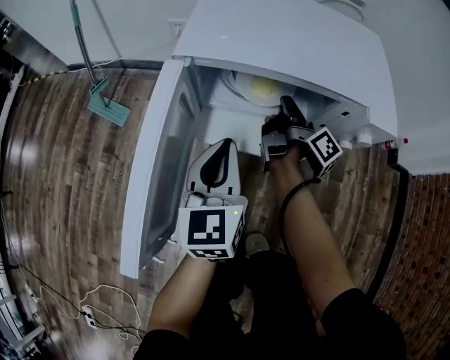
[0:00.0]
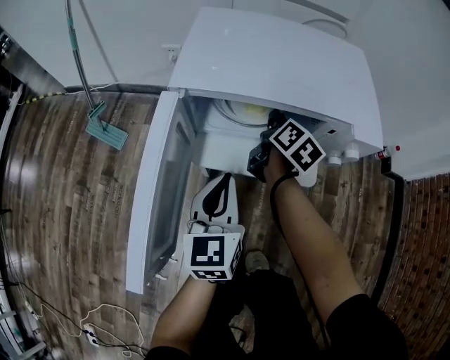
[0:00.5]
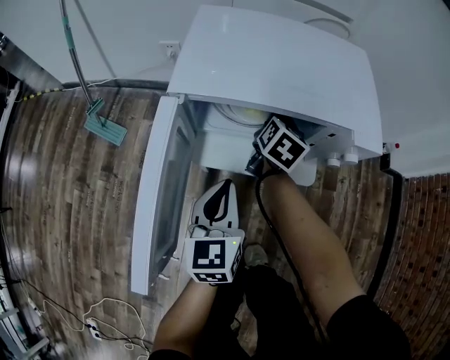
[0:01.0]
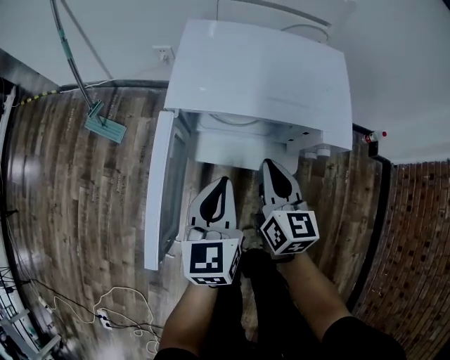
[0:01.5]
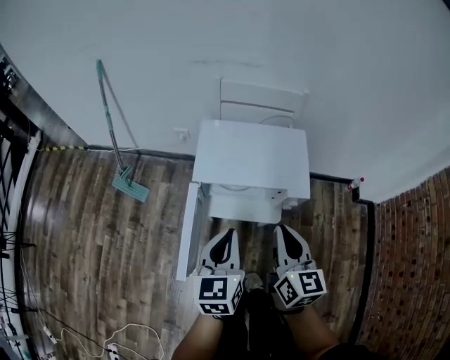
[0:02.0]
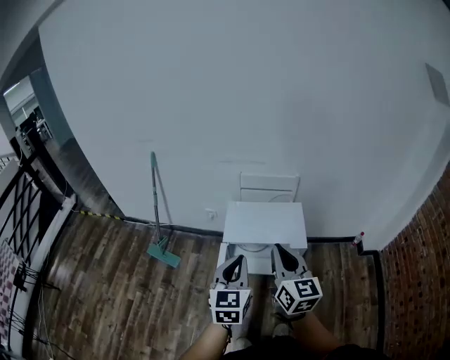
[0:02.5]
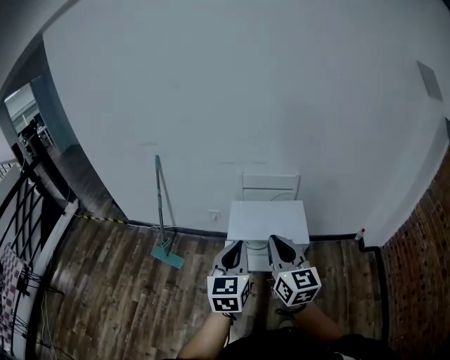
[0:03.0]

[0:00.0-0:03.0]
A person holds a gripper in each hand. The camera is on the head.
0:00.0 to 0:01.5: The left gripper moves upward, approximately 10 cm.
0:01.5 to 0:03.0: The left gripper travels upward by approximately 40 cm.

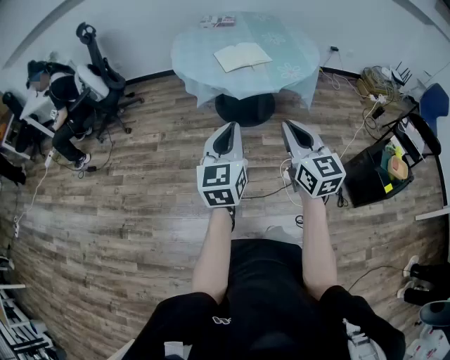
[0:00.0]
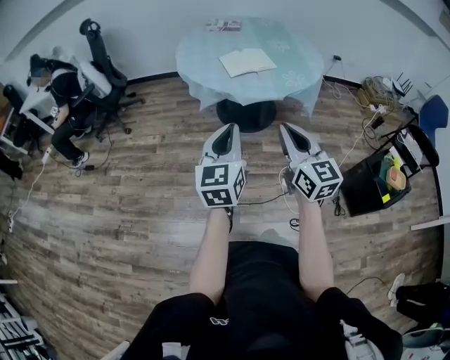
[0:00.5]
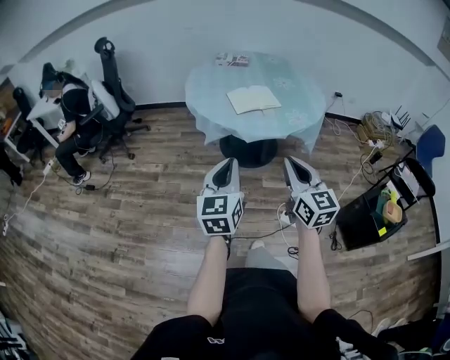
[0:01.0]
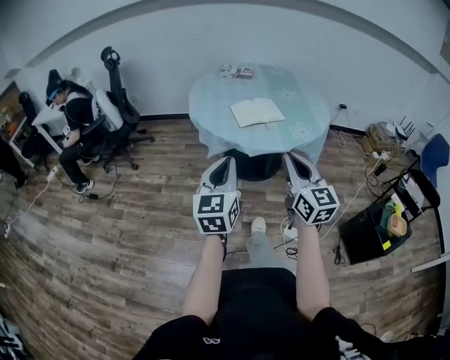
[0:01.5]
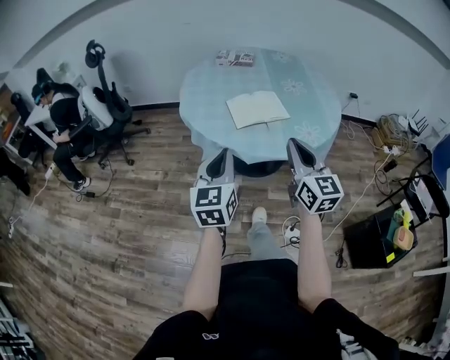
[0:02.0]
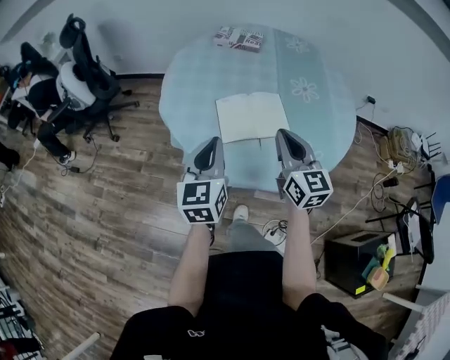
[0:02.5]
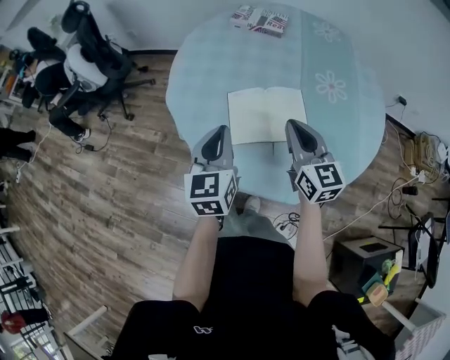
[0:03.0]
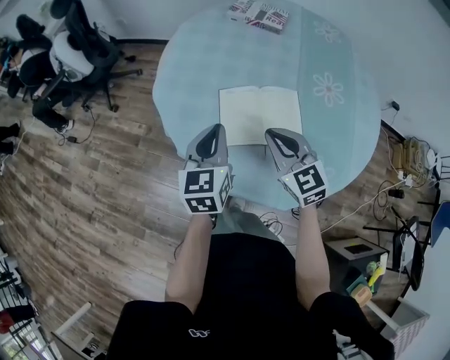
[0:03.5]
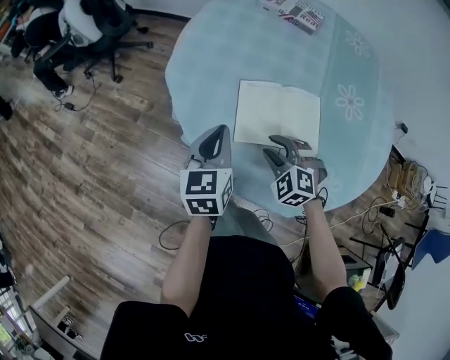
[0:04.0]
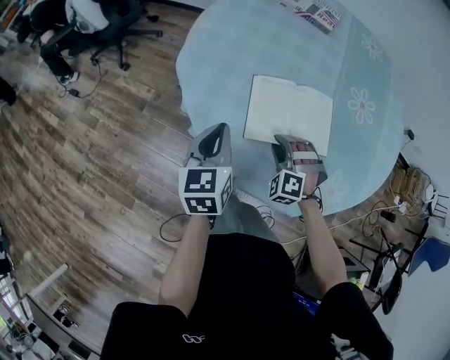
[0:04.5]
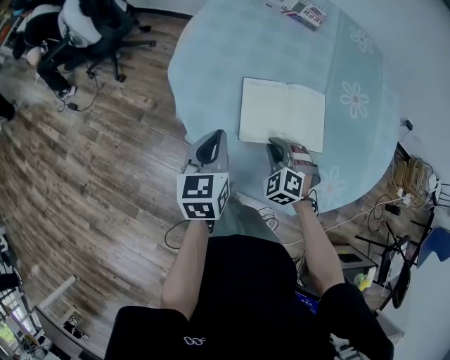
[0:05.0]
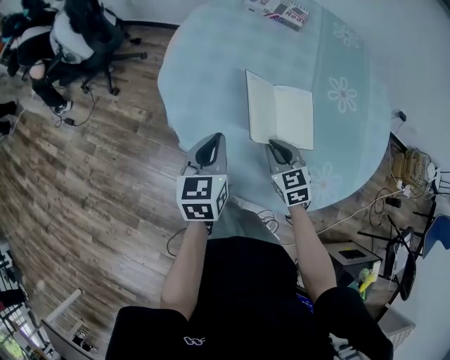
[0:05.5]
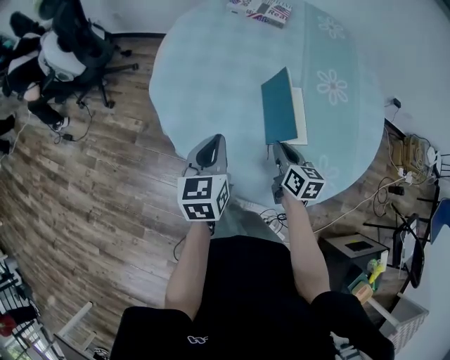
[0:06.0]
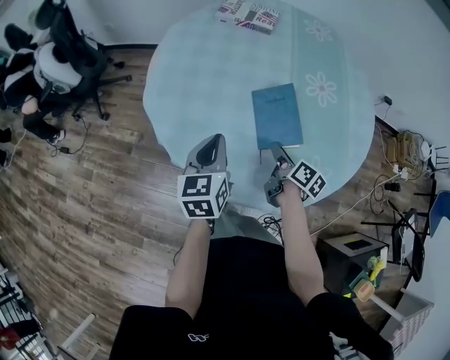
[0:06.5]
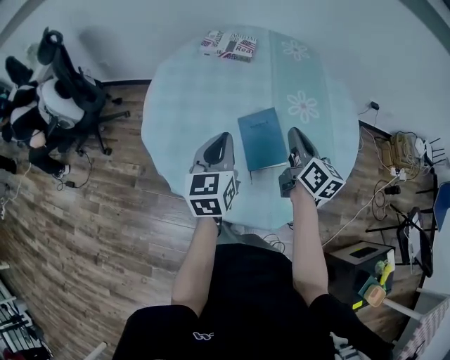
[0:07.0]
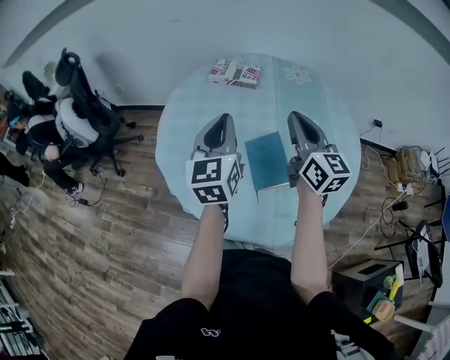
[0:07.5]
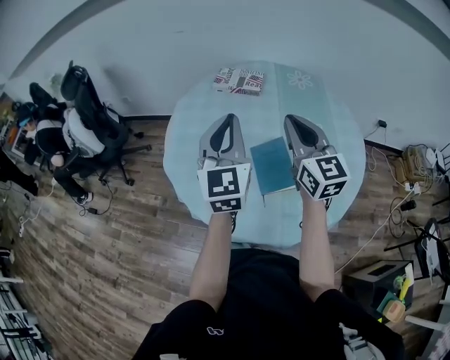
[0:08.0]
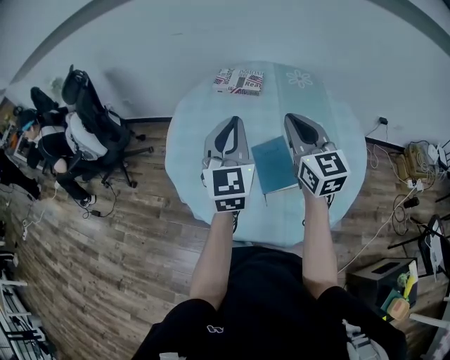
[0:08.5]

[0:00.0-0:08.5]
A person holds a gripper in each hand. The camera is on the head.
0:00.0 to 0:02.0: Both grippers move forward, about 25 cm.
0:02.0 to 0:04.0: The two grippers go about 40 cm forward and downward. The left gripper rotates roughly 30 degrees. Meanwhile the right gripper tips its fingers downward by some 50 degrees, and opens its fingers.
0:04.0 to 0:06.5: The right gripper is displaced to the right by about 10 cm, rolls clockwise, seen from behind, by about 120 degrees, and closes, then opens again; the left gripper shifts roughly 5 cm to the right.
0:06.5 to 0:08.5: The two grippers go approximately 30 cm upward. The right gripper rolls counterclockwise, seen from behind, by about 60 degrees, and closes, while the left gripper swivels roughly 40 degrees.

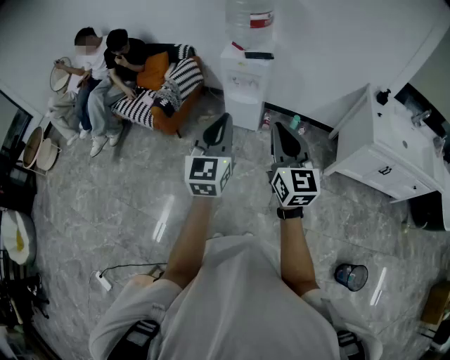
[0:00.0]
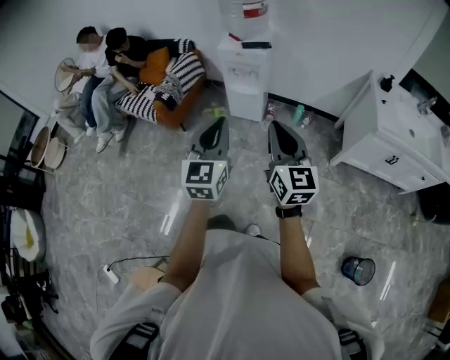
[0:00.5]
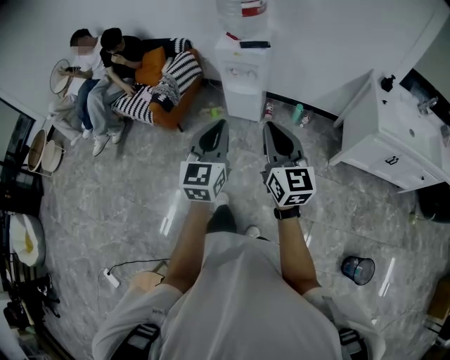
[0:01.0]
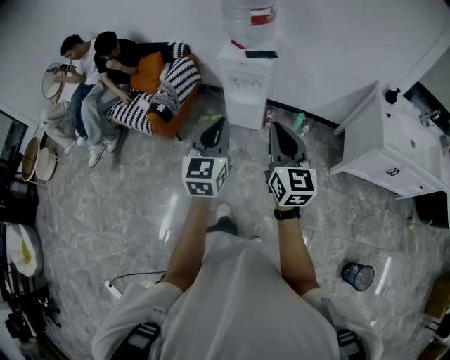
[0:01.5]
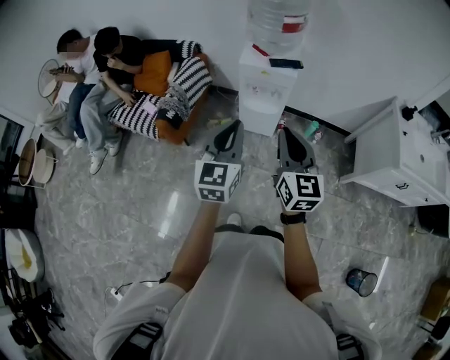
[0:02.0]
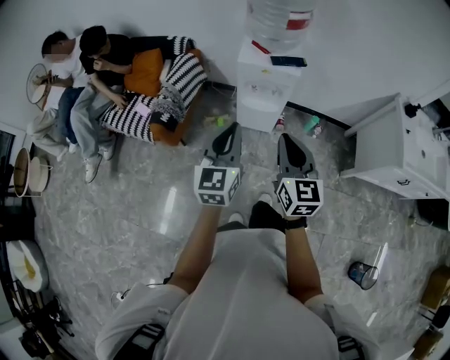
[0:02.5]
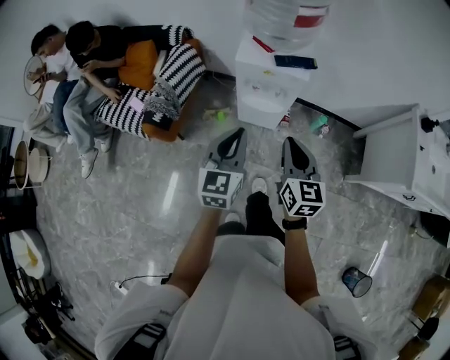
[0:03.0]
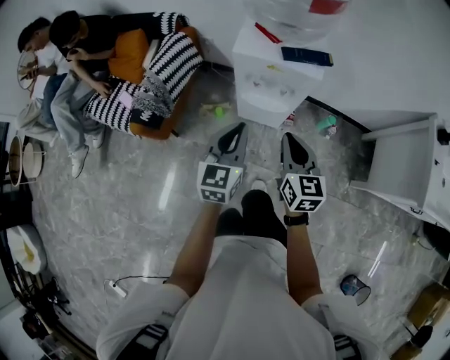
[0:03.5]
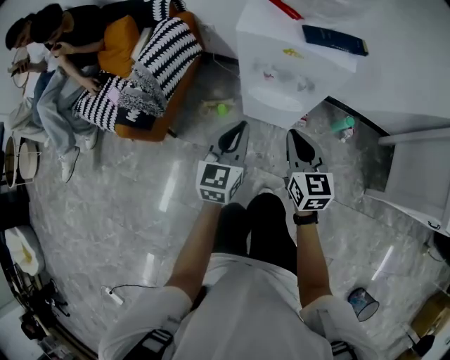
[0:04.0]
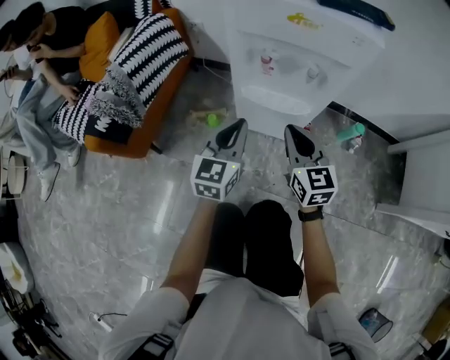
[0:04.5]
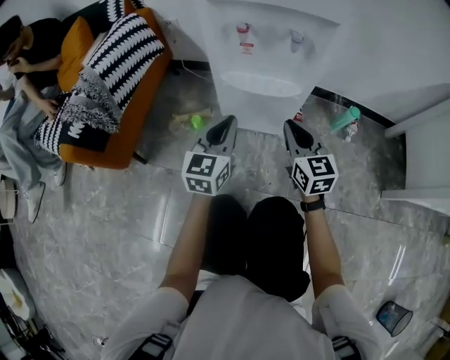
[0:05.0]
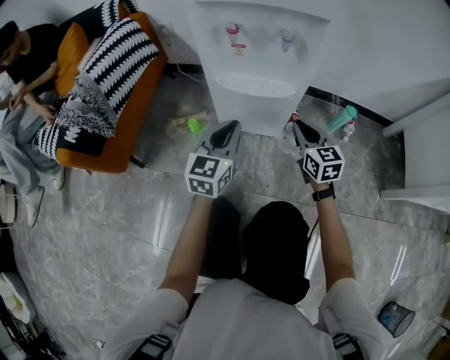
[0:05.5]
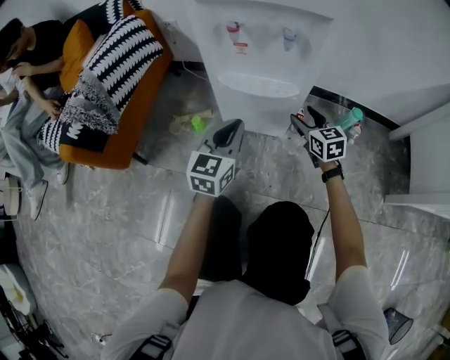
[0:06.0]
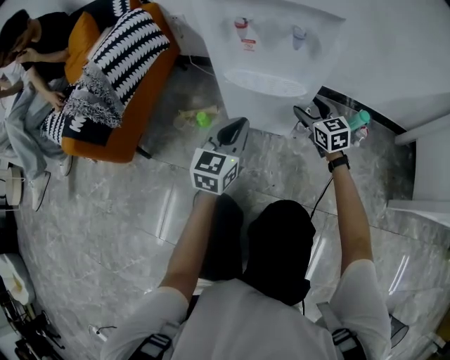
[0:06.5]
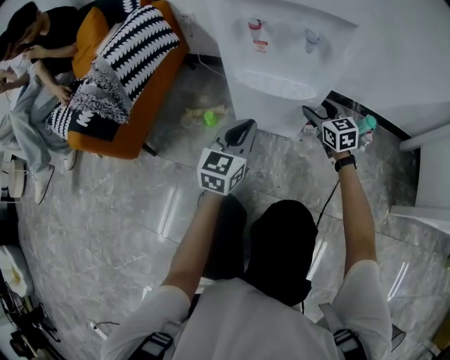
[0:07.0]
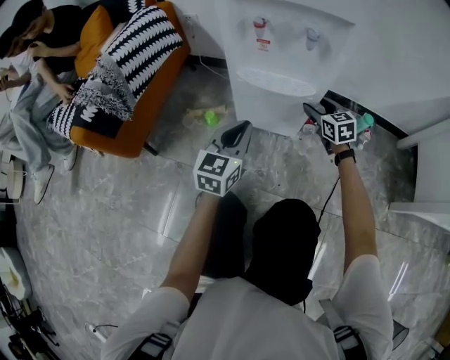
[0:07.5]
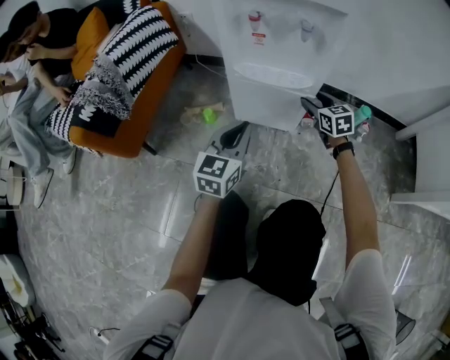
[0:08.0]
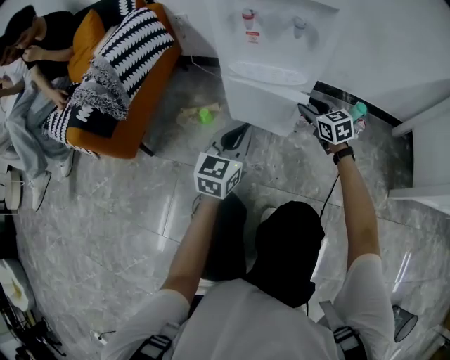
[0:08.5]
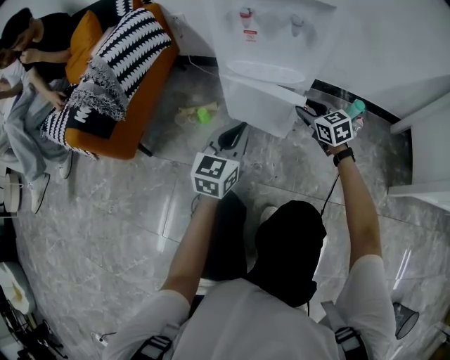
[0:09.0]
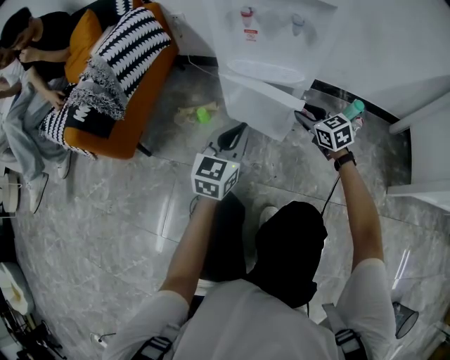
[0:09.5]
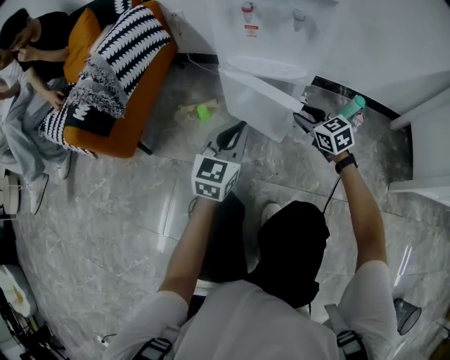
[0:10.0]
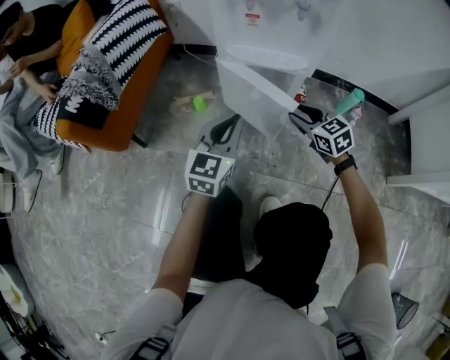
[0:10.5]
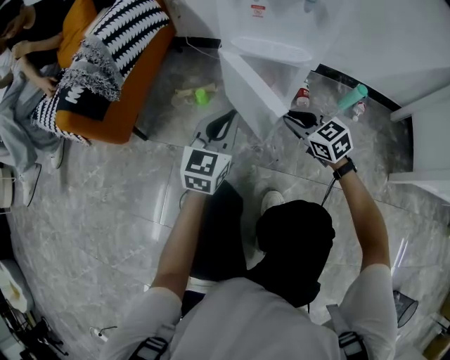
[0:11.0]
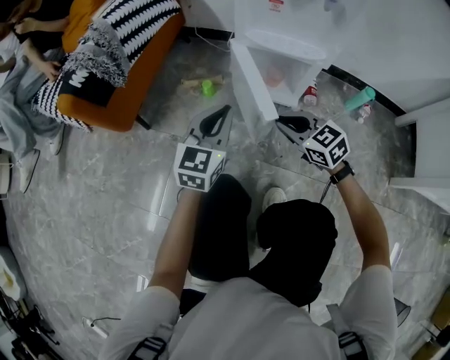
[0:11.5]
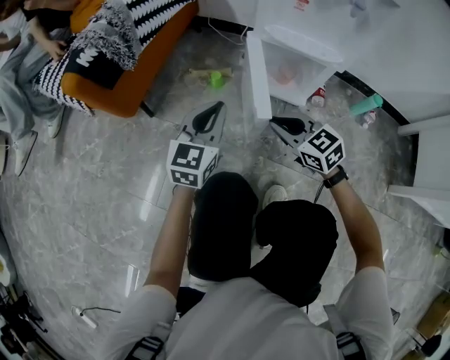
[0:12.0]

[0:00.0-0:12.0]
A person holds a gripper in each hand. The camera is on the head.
0:00.0 to 0:02.0: Both grippers travel together forward and to the left, about 25 cm.
0:02.0 to 0:04.0: The two grippers go about 50 cm downward and forward.
0:04.0 to 0:06.0: The right gripper travels downward and forward by roughly 35 cm, and opens. The left gripper travels downward by approximately 25 cm.
0:06.0 to 0:08.0: The grippers stay close to where they were, moving slightly.
0:08.0 to 0:10.0: The right gripper moves backward, about 10 cm.
0:10.0 to 0:12.0: The right gripper shifts approximately 20 cm to the left and backward, rotates approximately 20 degrees, and closes, while the left gripper goes approximately 15 cm to the left.

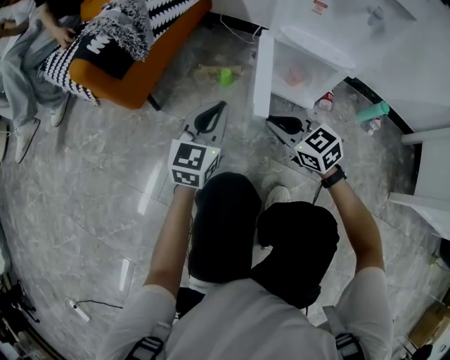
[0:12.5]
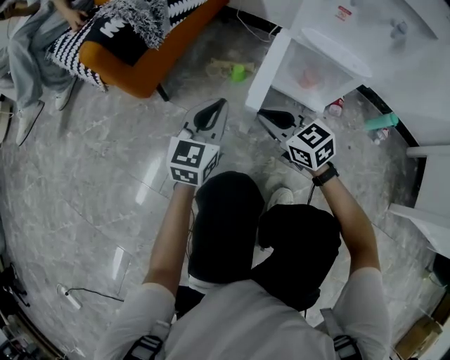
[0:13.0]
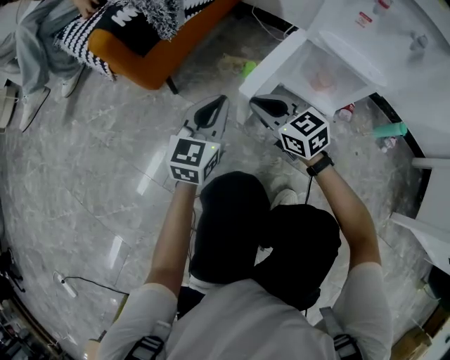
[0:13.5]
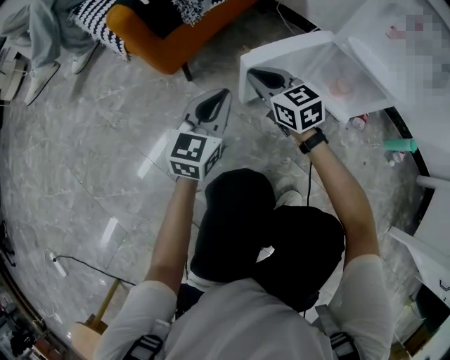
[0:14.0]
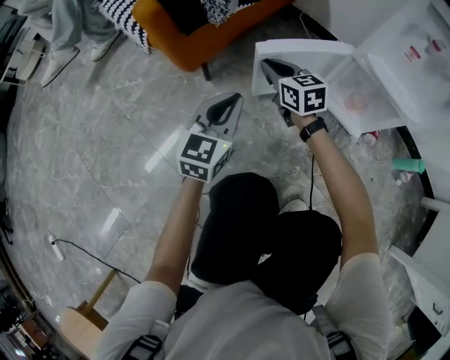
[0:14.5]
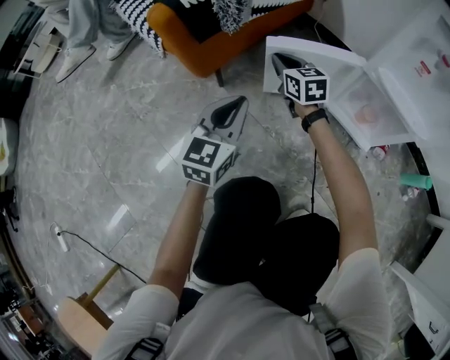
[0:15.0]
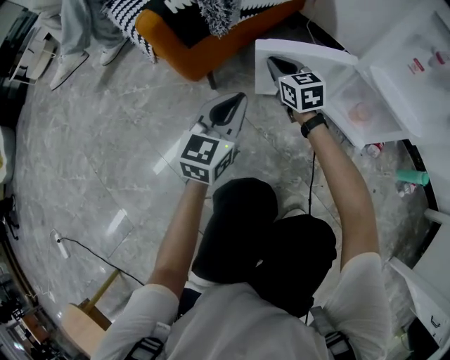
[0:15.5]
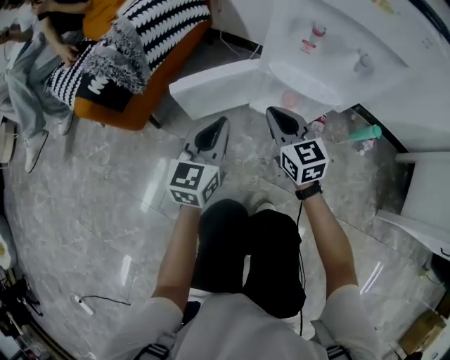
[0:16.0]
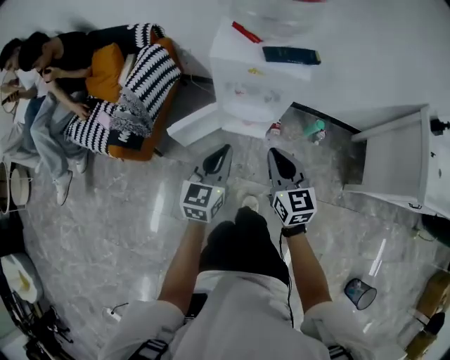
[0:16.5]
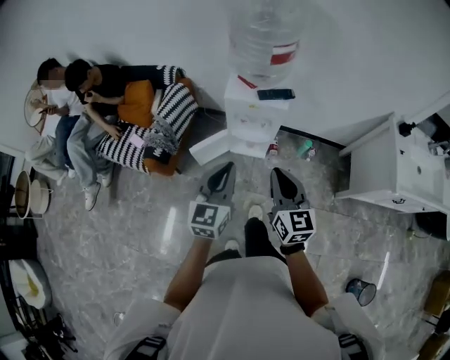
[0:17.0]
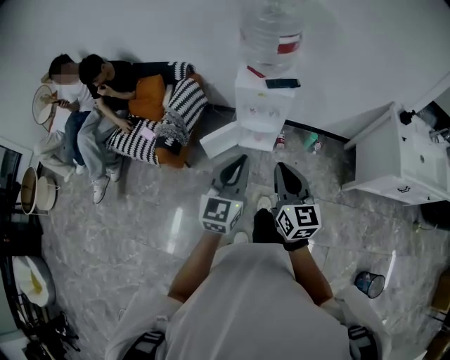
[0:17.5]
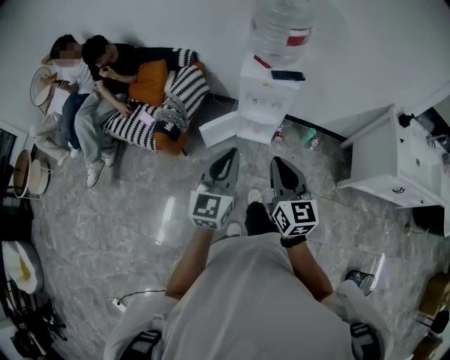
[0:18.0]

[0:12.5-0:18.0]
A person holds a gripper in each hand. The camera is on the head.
0:12.5 to 0:14.5: The left gripper heads to the left, covering about 10 cm. Meanwhile the right gripper moves forward and to the left, some 25 cm.
0:14.5 to 0:16.0: The left gripper goes some 20 cm to the right and upward, while the right gripper moves to the right, upward and backward, some 25 cm, and rotates approximately 20 degrees.
0:16.0 to 0:18.0: Both grippers travel together upward and backward, about 70 cm. The right gripper turns by some 30 degrees.
